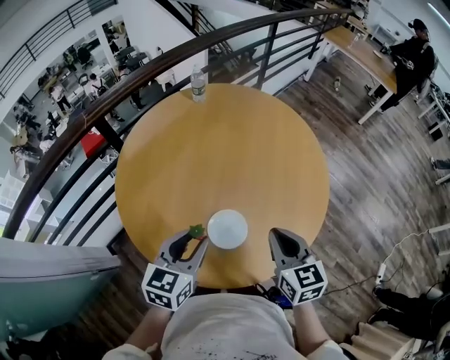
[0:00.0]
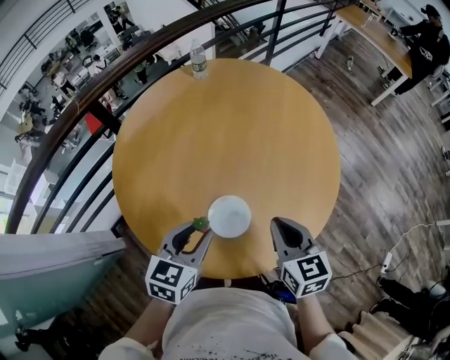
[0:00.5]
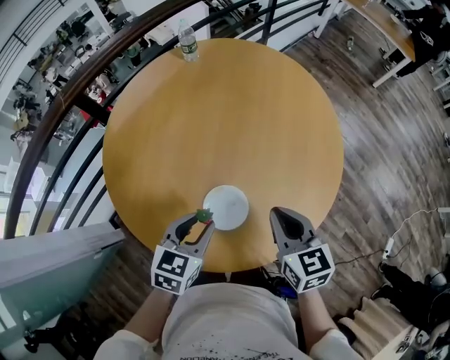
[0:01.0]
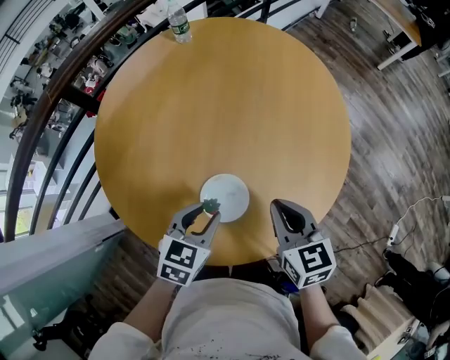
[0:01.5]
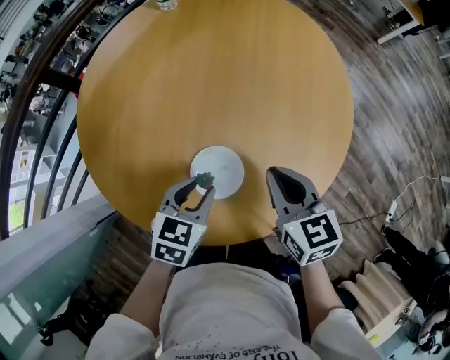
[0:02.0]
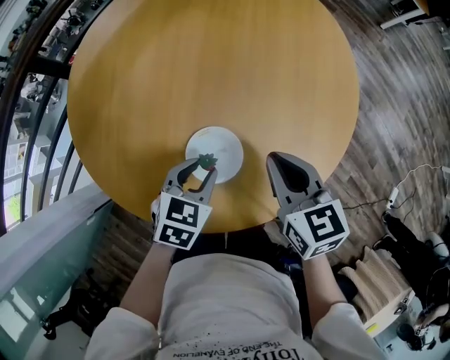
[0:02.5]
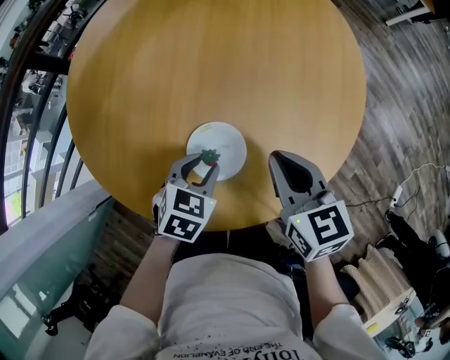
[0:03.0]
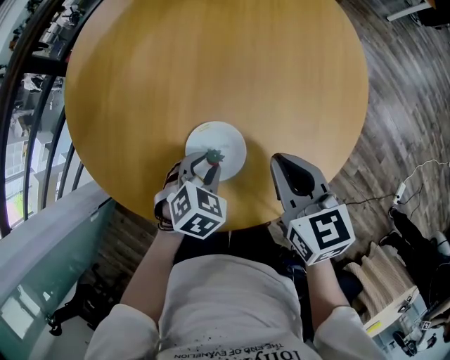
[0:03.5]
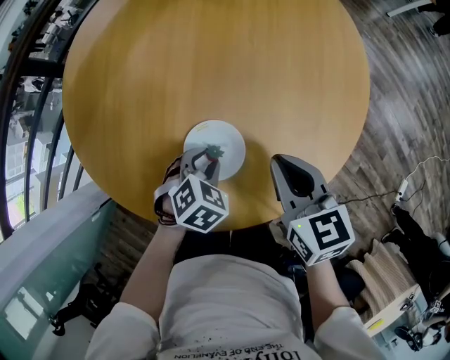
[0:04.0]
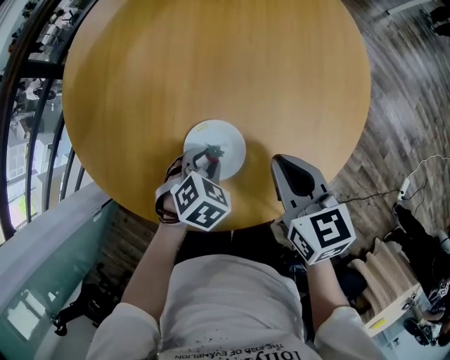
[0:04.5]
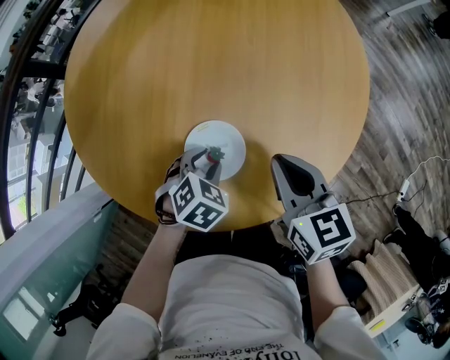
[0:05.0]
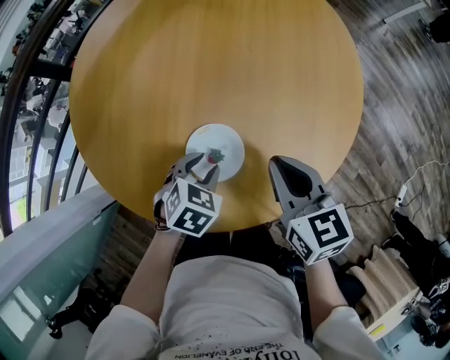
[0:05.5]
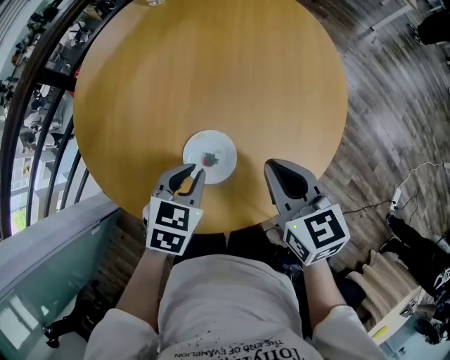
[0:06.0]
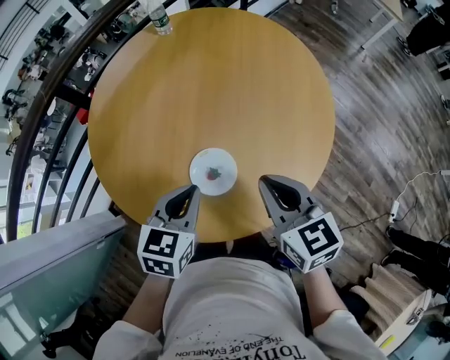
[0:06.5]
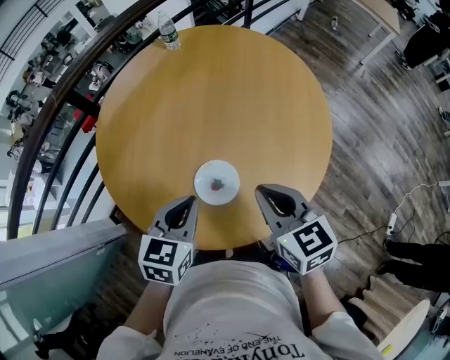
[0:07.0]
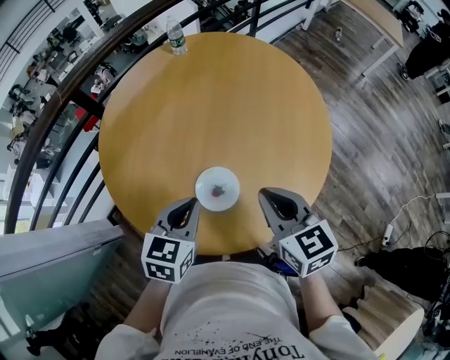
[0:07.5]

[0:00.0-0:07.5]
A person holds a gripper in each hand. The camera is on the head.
0:00.0 to 0:02.0: The left gripper heads downward and to the right, covering about 15 cm, and swivels some 20 degrees, while the right gripper moves downward, roughly 5 cm.
0:02.0 to 0:04.0: The left gripper travels downward by some 10 cm, and changes its angle by roughly 30 degrees.
0:04.0 to 0:05.5: The grippers make only small movements.
0:05.5 to 0:07.5: The right gripper is displaced upward by about 10 cm. Meanwhile the left gripper heads upward, covering roughly 20 cm, swivels roughly 30 degrees, and closes up.

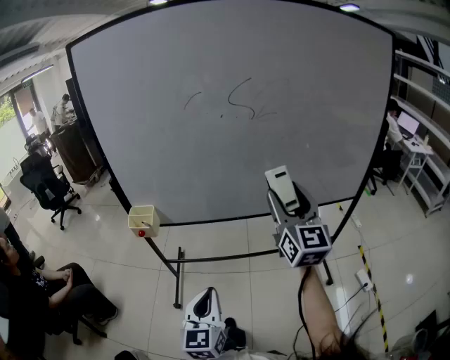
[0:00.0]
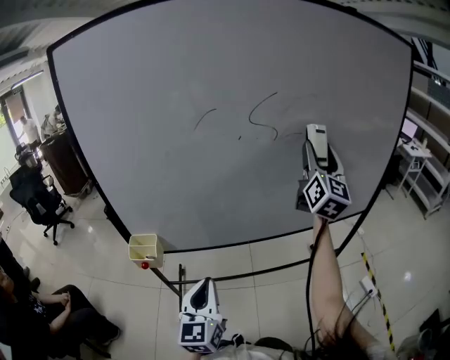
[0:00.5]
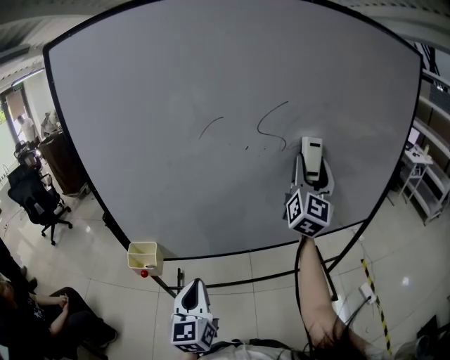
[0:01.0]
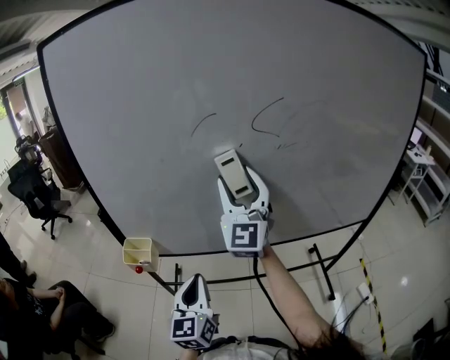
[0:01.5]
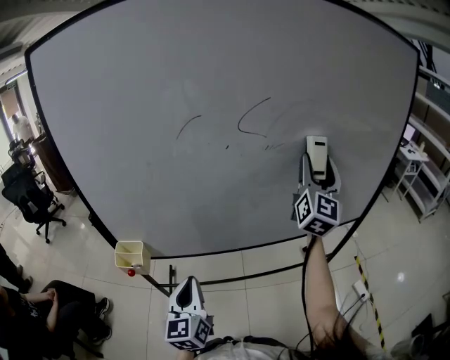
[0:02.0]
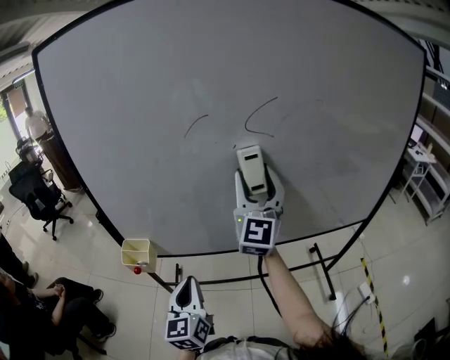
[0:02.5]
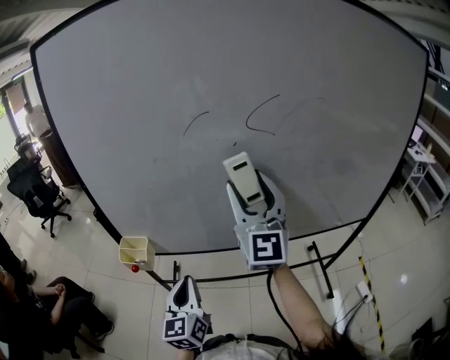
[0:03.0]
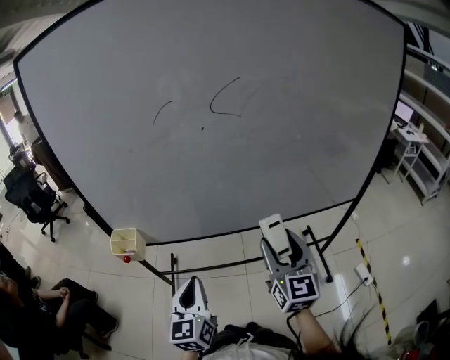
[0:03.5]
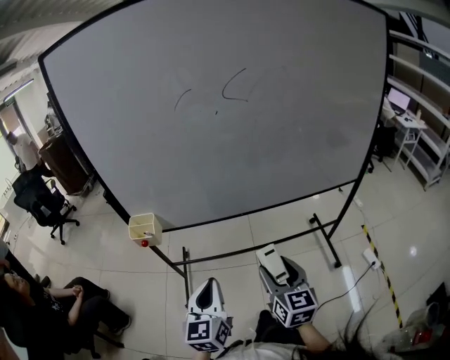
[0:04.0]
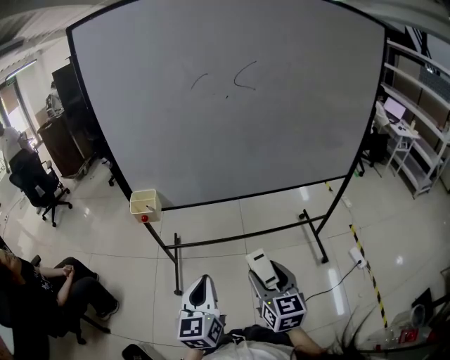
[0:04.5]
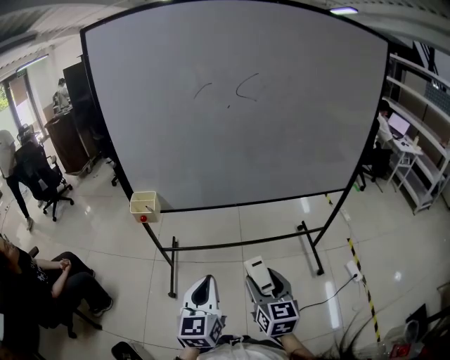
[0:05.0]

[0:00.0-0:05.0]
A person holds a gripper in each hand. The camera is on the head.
0:00.0 to 0:02.5: The right gripper moves left and right over some 25 cm, changing direction 3 times, while the left gripper is displaced forward and to the left by roughly 20 cm.
0:02.5 to 0:05.0: The right gripper shifts some 50 cm backward and downward, and angles its fingers downward, by some 40 degrees. The left gripper moves backward, roughly 25 cm.

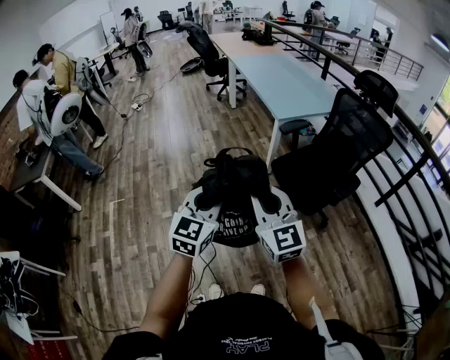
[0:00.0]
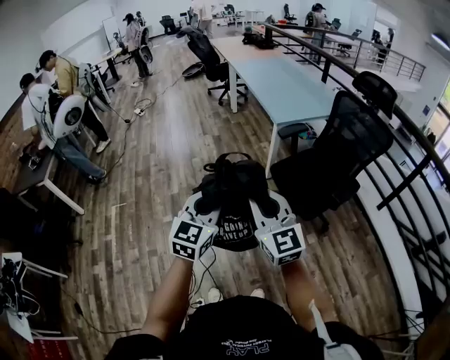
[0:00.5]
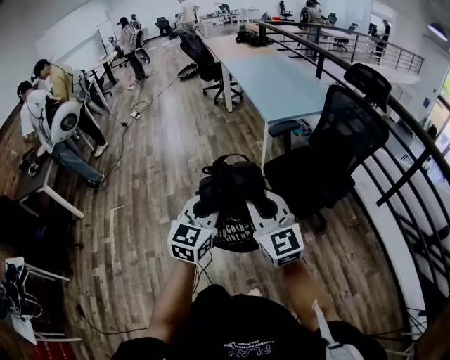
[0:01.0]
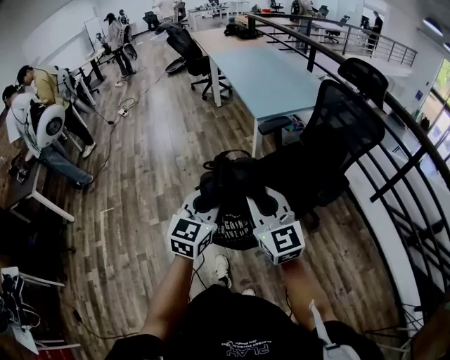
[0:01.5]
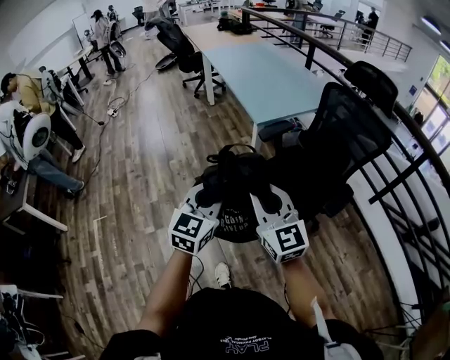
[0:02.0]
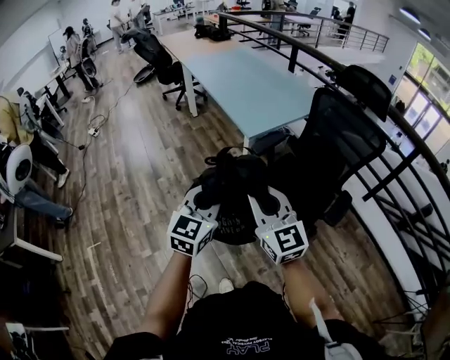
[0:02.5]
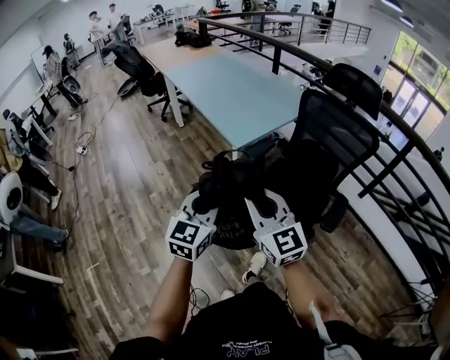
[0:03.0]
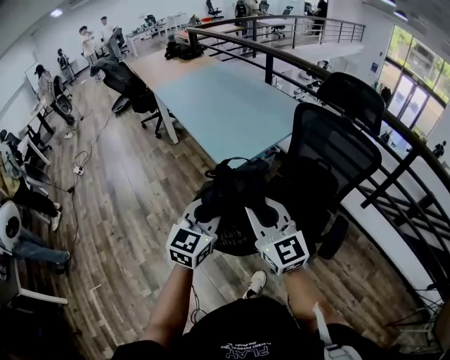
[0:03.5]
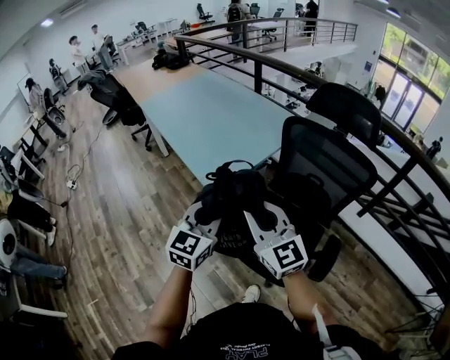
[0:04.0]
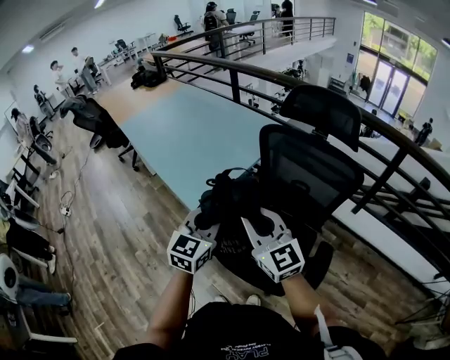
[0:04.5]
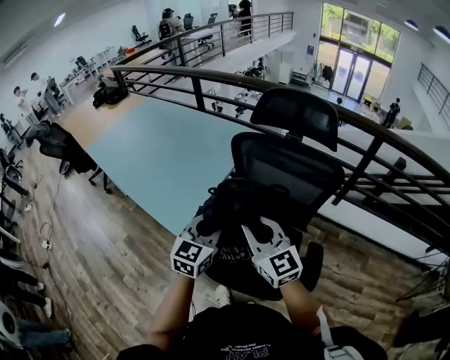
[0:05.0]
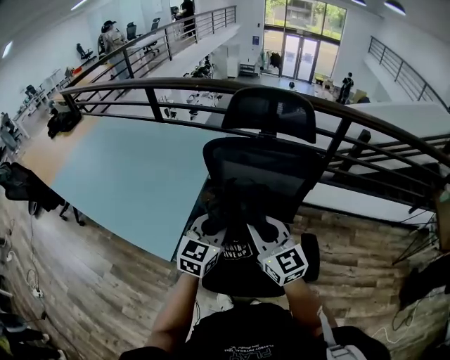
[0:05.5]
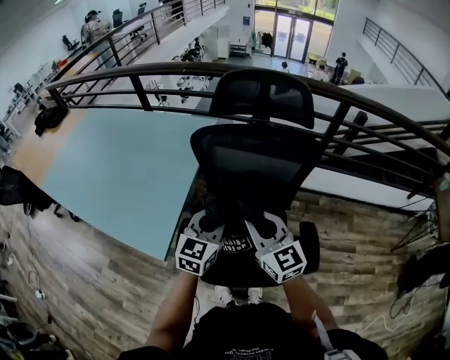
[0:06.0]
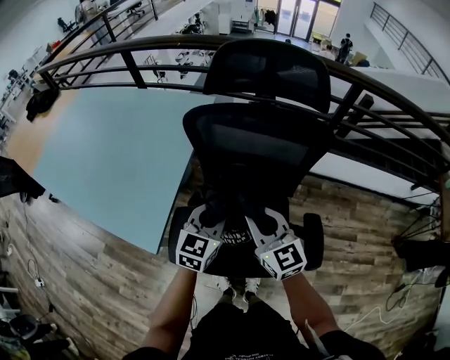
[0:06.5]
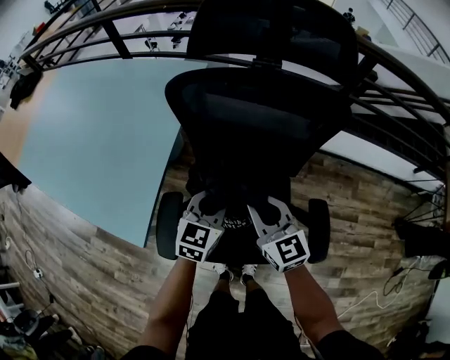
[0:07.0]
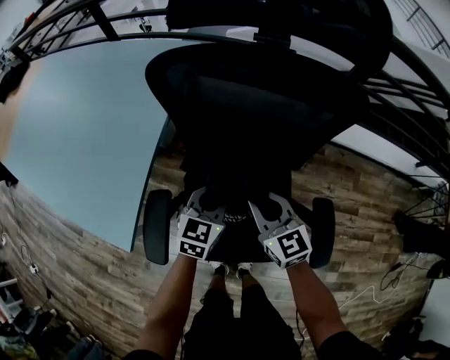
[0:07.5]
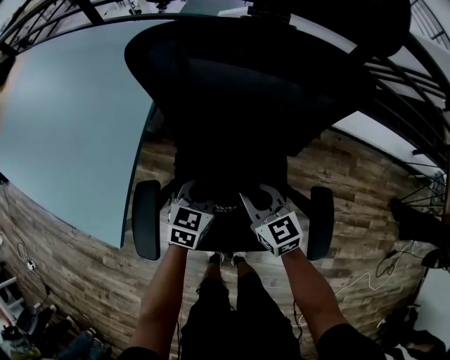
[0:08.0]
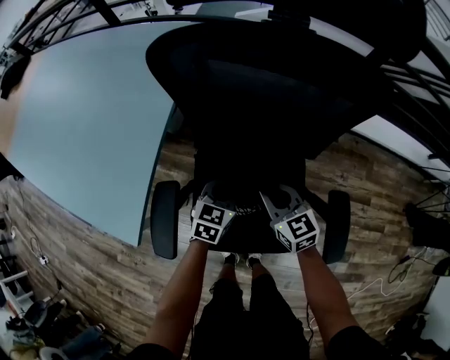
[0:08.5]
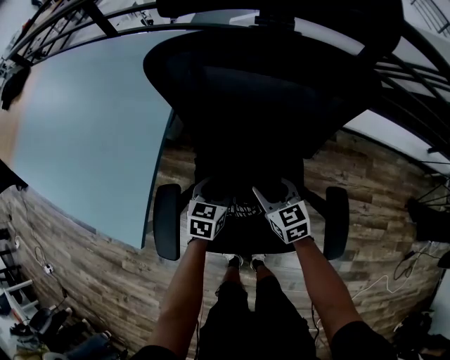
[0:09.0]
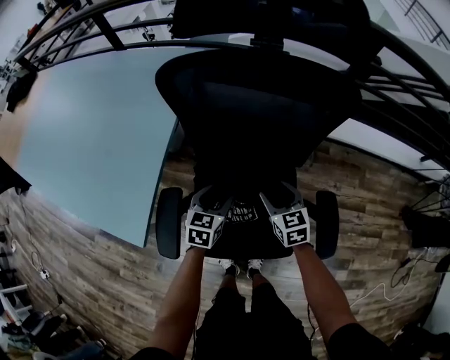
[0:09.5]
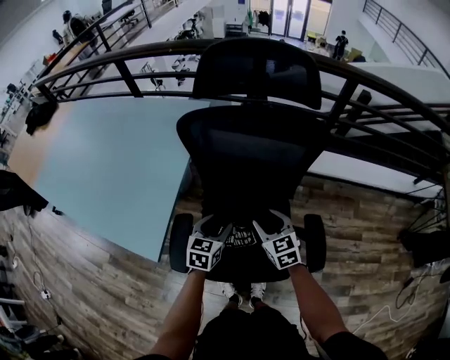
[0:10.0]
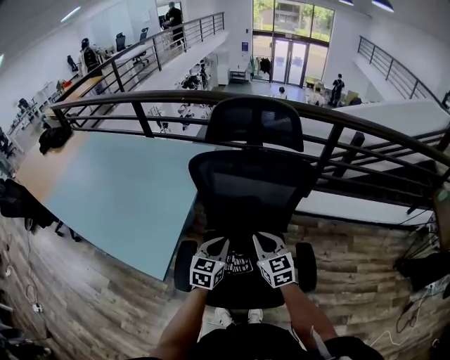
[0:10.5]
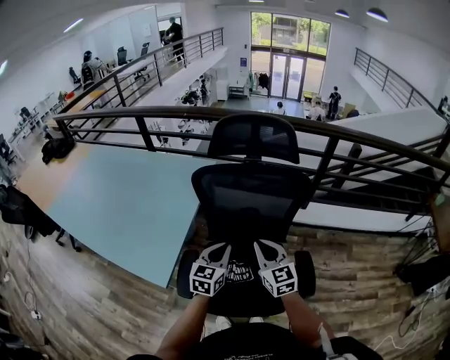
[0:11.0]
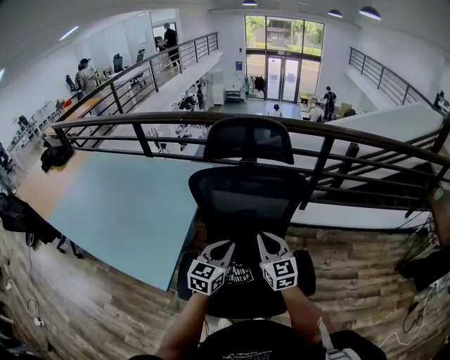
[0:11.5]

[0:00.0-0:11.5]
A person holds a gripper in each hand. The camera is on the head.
0:00.0 to 0:02.0: The grippers both shift forward and to the right by about 20 cm.
0:02.0 to 0:04.0: The grippers both shift forward by roughly 35 cm.
0:04.0 to 0:06.0: The right gripper ends up approximately 25 cm from where it was, and changes its angle by about 40 degrees. Meanwhile the left gripper changes place by approximately 30 cm, and swivels about 30 degrees.
0:06.0 to 0:07.5: The grippers both shift downward by about 25 cm.
0:07.5 to 0:09.5: The right gripper moves downward and to the right, approximately 10 cm, and opens its fingers; the left gripper is displaced downward by about 5 cm, and opens.
0:09.5 to 0:11.5: The grippers both shift upward by some 30 cm. The left gripper turns by roughly 30 degrees, and closes its fingers; the right gripper tilts its fingers roughly 30 degrees upward, and closes its fingers.

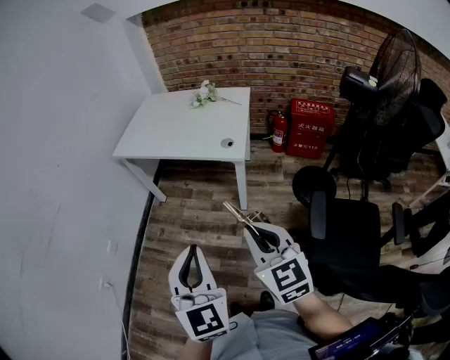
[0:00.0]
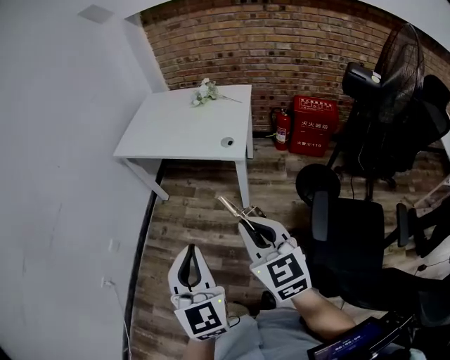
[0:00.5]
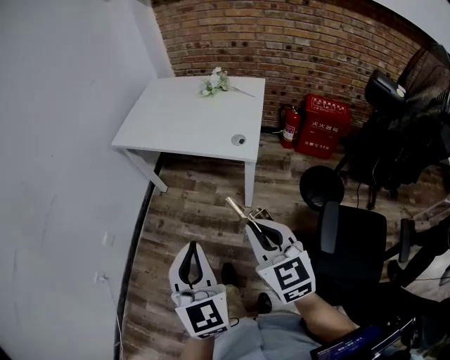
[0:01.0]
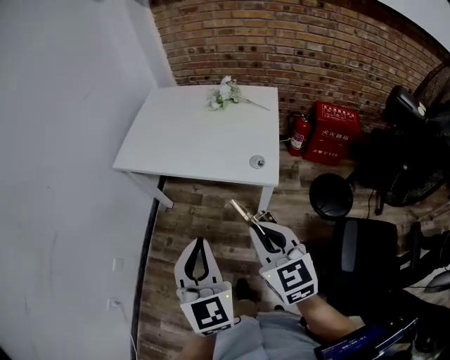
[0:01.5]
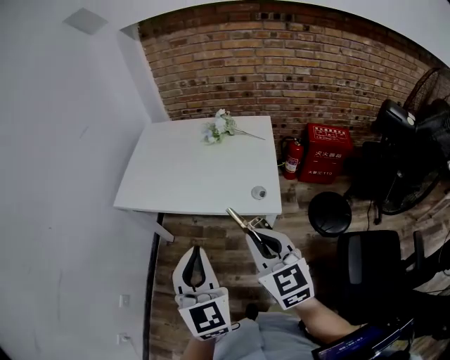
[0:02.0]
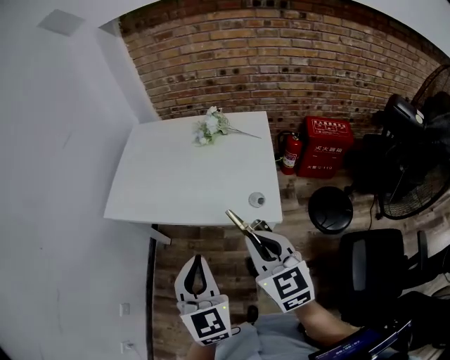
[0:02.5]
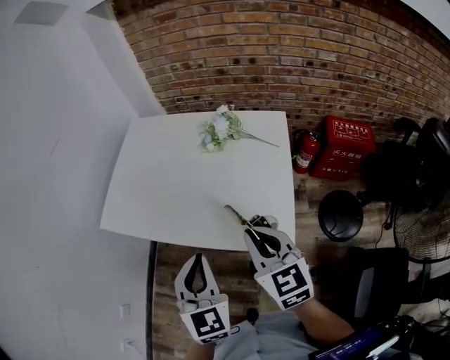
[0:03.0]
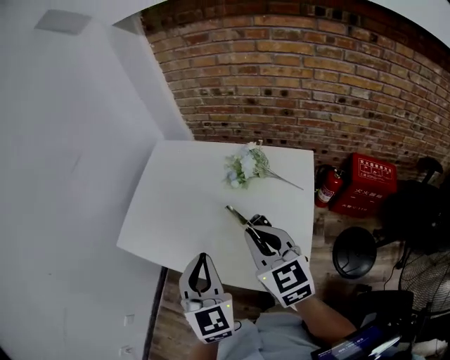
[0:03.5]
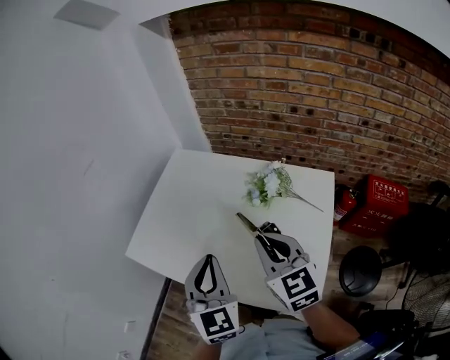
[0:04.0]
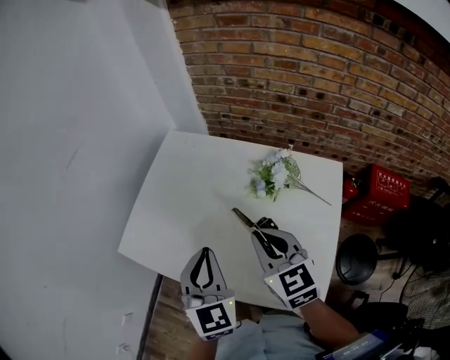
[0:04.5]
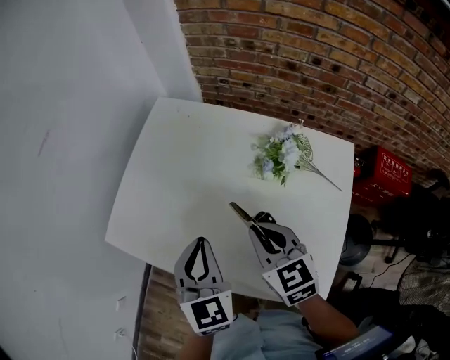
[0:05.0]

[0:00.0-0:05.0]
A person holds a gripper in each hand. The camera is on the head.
0:00.0 to 0:02.5: Both grippers travel together forward, some 35 cm.
0:02.5 to 0:05.0: The grippers both shift forward by about 40 cm. The right gripper turns by some 20 degrees.
